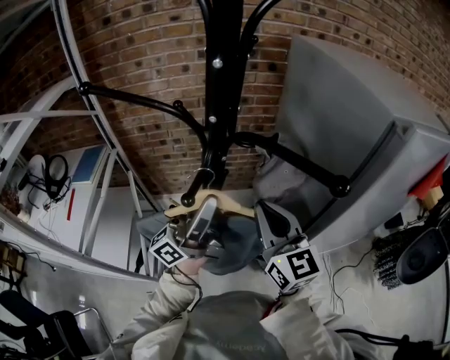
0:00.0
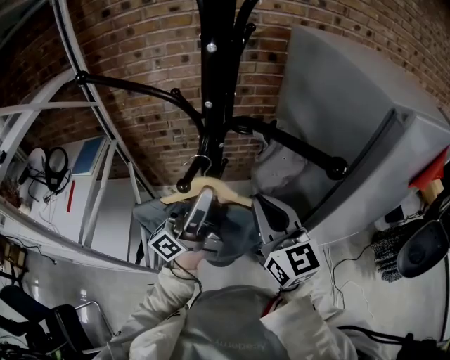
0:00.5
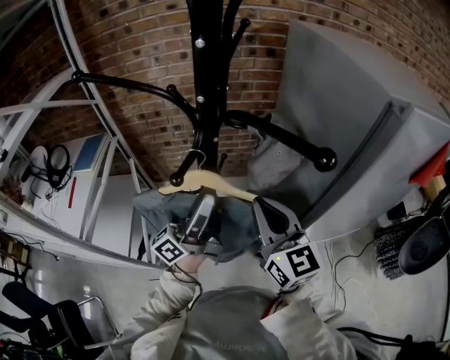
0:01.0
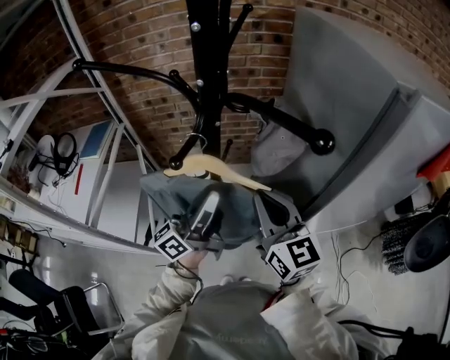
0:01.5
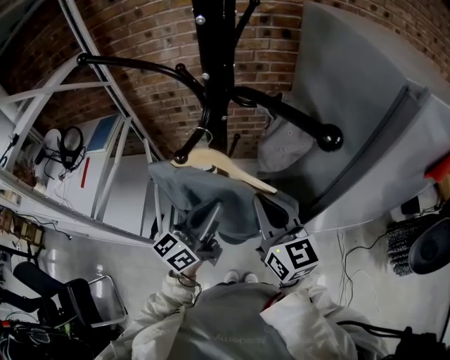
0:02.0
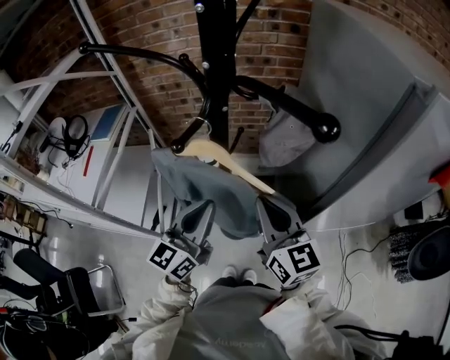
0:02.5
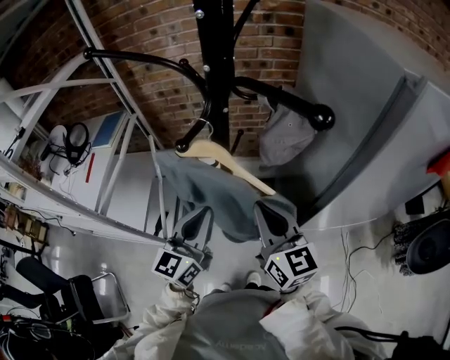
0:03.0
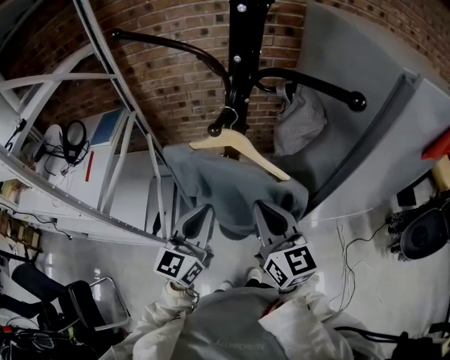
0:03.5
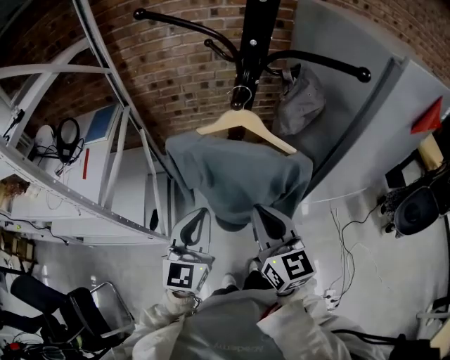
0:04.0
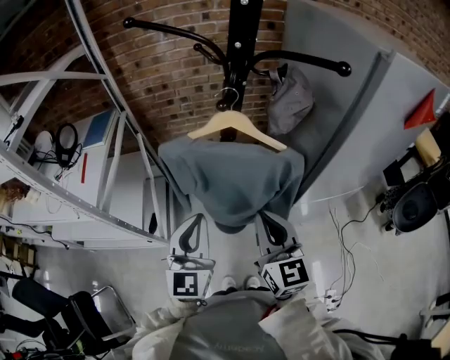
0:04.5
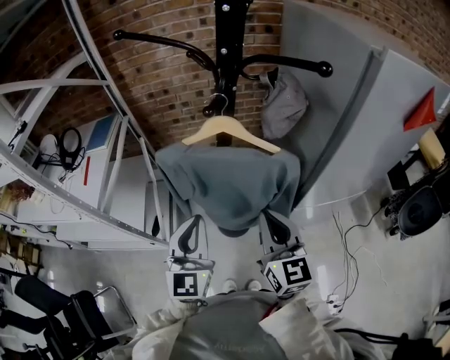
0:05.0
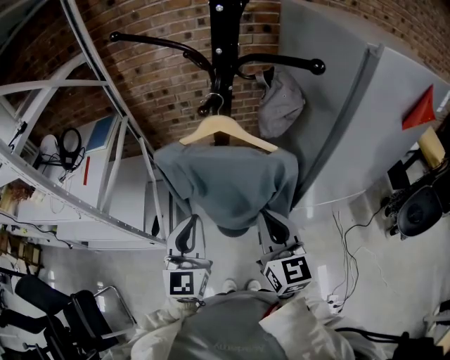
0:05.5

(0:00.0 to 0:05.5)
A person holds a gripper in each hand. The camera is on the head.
0:00.0 - 0:02.0: The right gripper is displaced downward by approximately 5 cm, while the left gripper moves downward and backward, approximately 10 cm, and tilts its fingers roughly 30 degrees downward.
0:02.0 - 0:03.5: The left gripper shifts some 10 cm to the left and backward, and rotates some 20 degrees, while the right gripper travels backward by some 5 cm.
0:03.5 - 0:05.5: Both grippers travel together backward, about 10 cm.

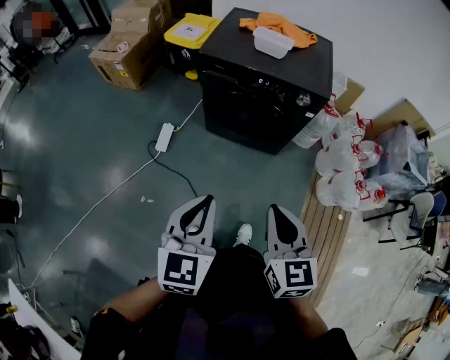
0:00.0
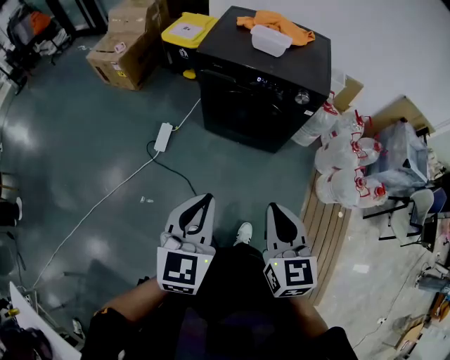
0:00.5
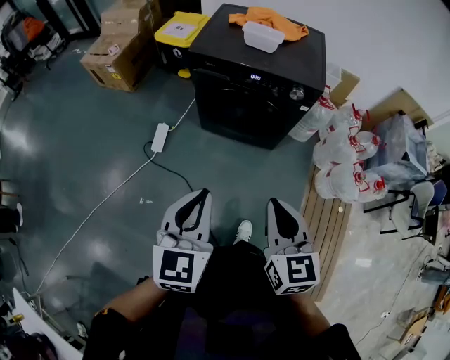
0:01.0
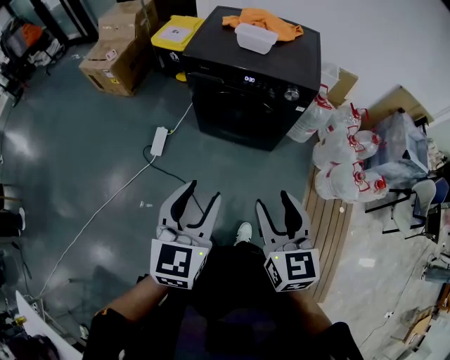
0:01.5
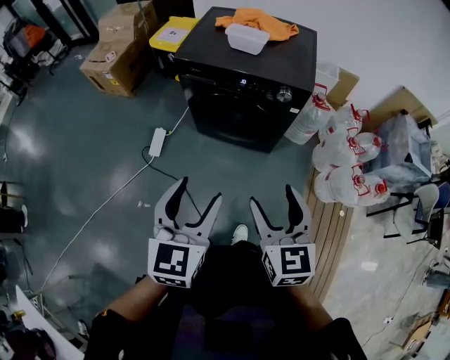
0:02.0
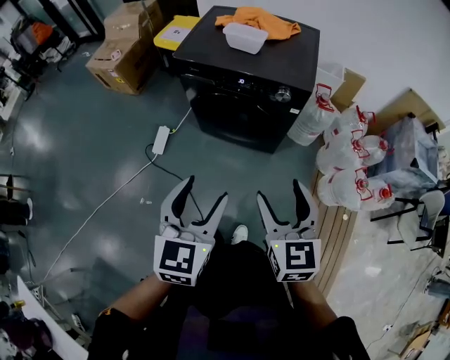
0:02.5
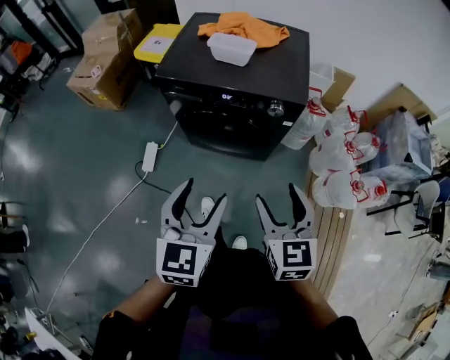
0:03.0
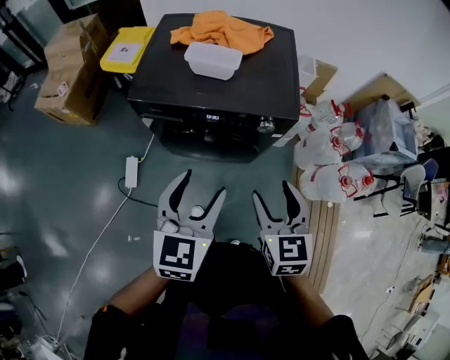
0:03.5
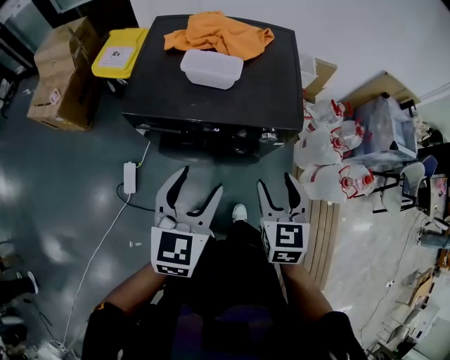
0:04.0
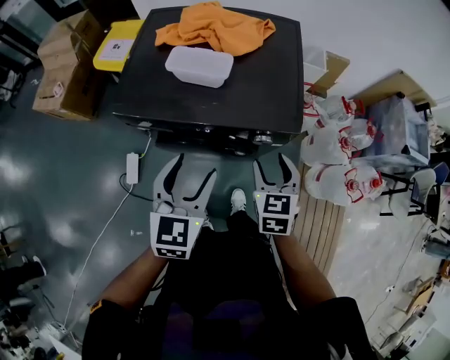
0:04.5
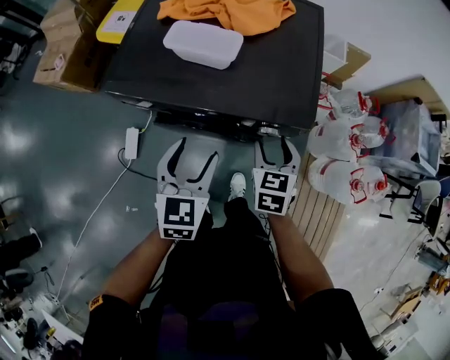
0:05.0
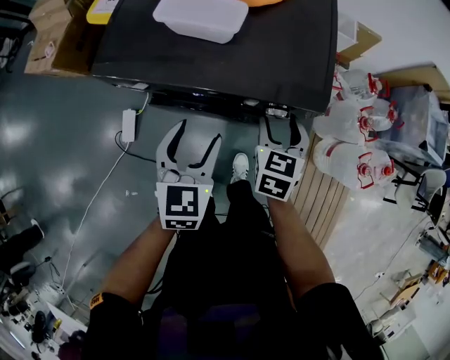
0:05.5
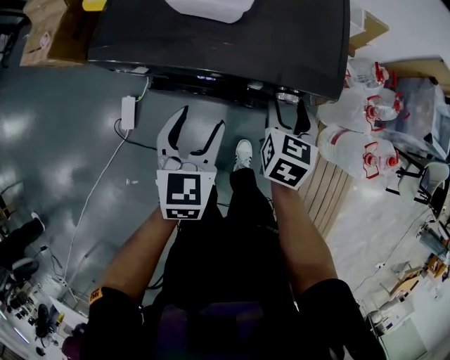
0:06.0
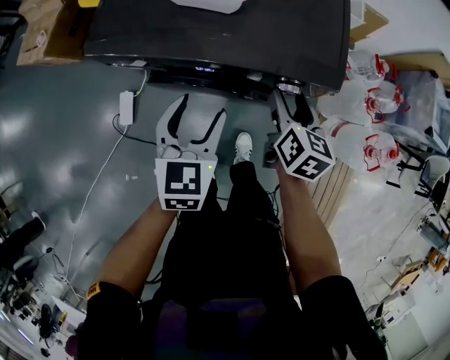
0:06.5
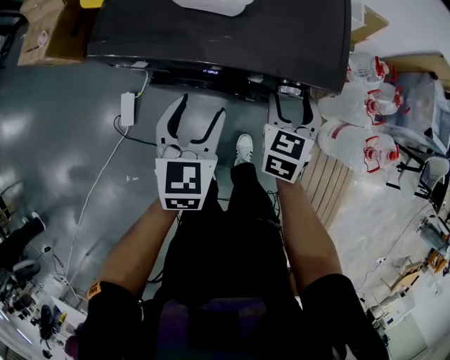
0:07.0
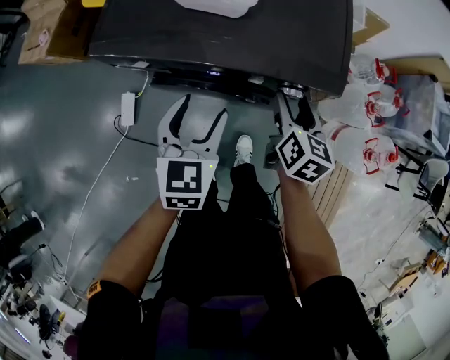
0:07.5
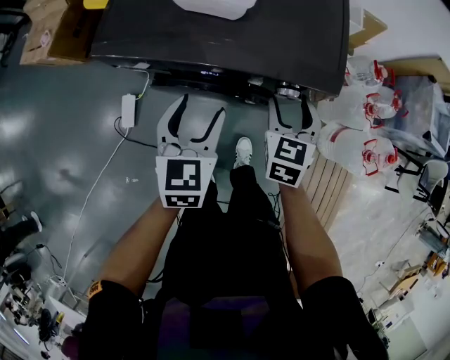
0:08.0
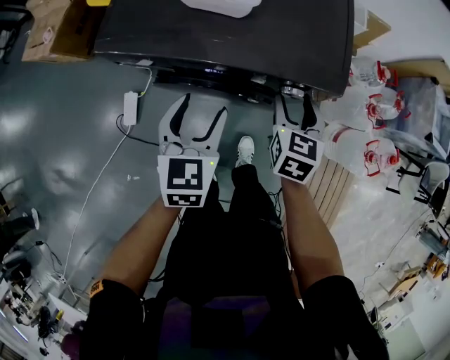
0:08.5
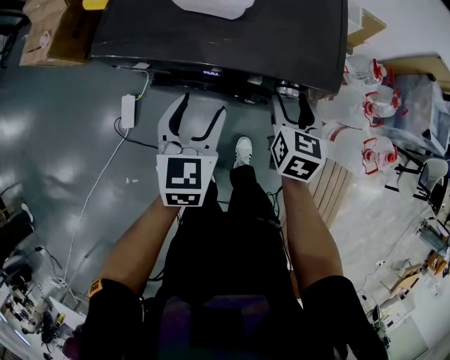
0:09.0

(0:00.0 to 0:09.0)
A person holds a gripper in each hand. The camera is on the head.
0:00.0 - 0:02.0: The left gripper heads to the right, covering some 10 cm, and opens its fingers. The right gripper moves to the right and forward, approximately 10 cm, and opens.
0:02.0 - 0:04.5: Both grippers move forward, approximately 35 cm. The right gripper swivels about 20 degrees.
0:04.5 - 0:07.0: The left gripper is displaced downward by approximately 10 cm. Meanwhile the right gripper moves downward and forward, some 10 cm.

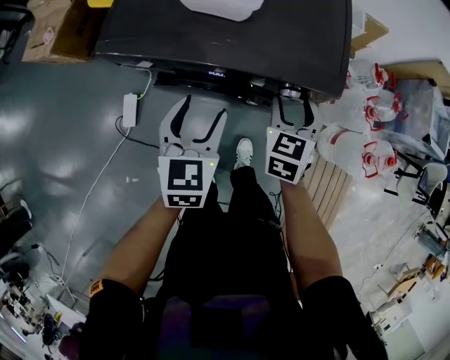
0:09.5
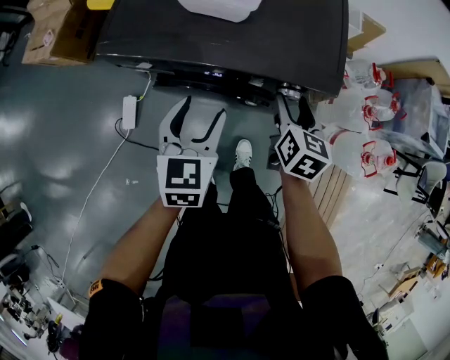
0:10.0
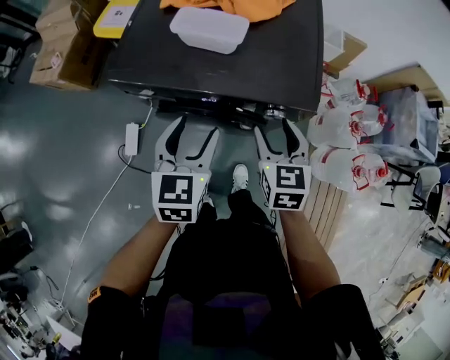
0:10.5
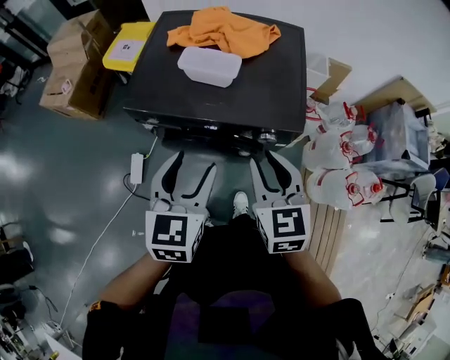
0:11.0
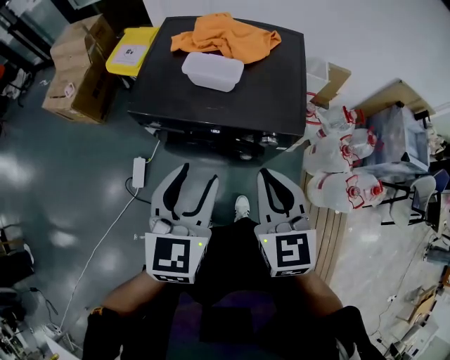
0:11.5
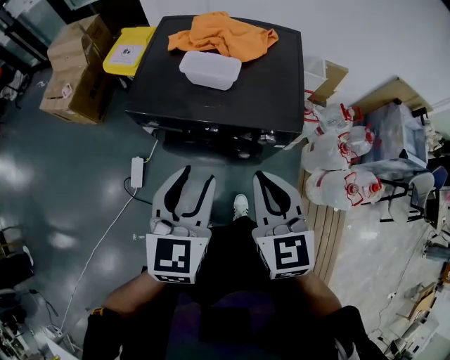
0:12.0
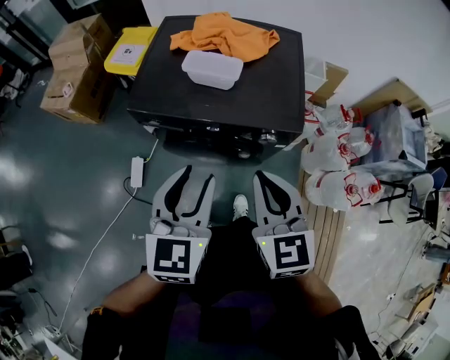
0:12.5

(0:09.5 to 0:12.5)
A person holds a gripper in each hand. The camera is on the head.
0:09.5 - 0:11.0: The right gripper shifts about 20 cm upward and backward, rotates some 20 degrees, and closes up. Meanwhile the left gripper goes roughly 15 cm upward.
0:11.0 - 0:12.5: The left gripper ends up approximately 5 cm from where it was, and closes. Meanwhile the right gripper heads backward, covering roughly 5 cm.

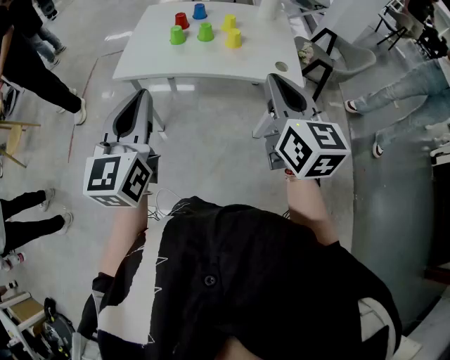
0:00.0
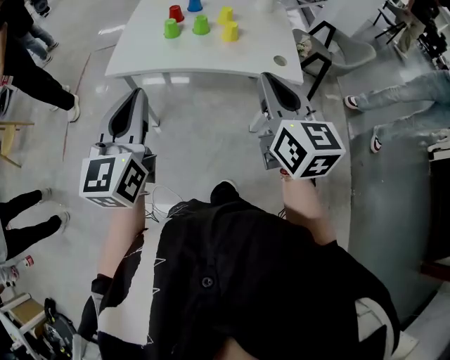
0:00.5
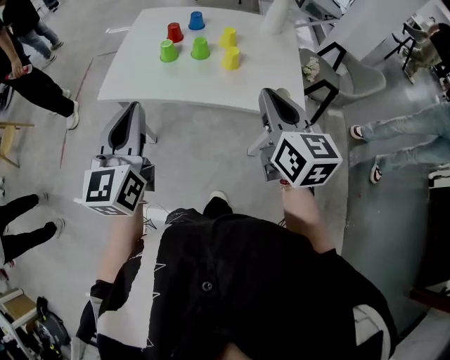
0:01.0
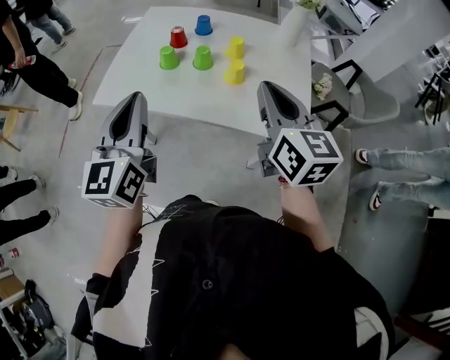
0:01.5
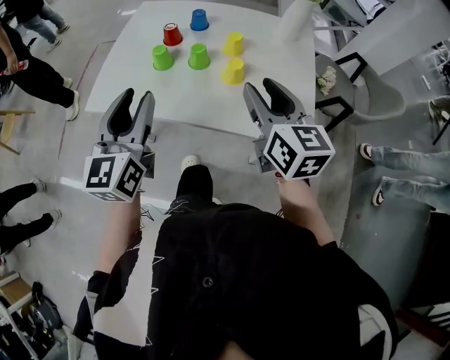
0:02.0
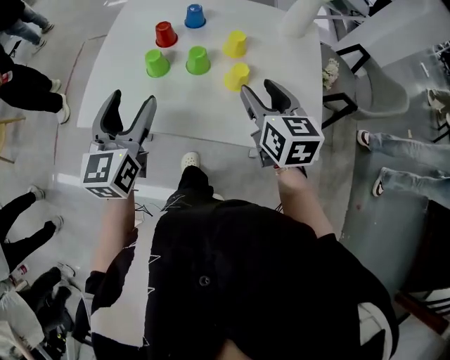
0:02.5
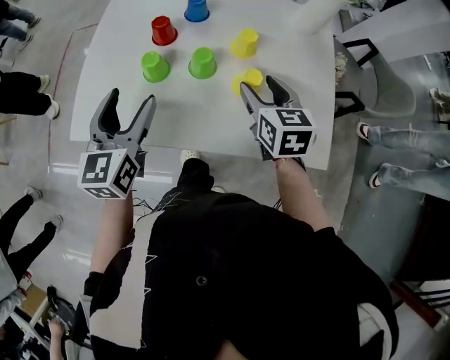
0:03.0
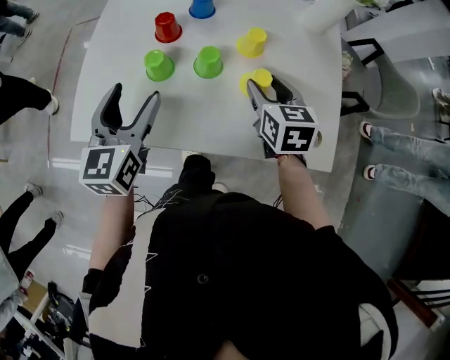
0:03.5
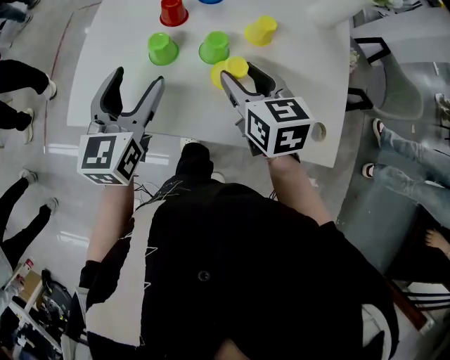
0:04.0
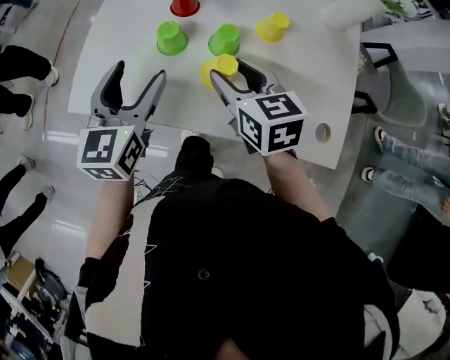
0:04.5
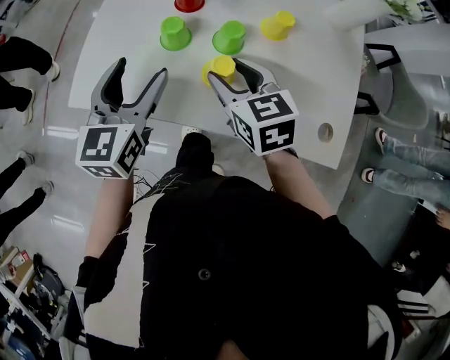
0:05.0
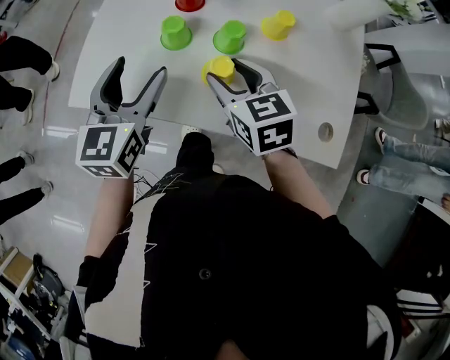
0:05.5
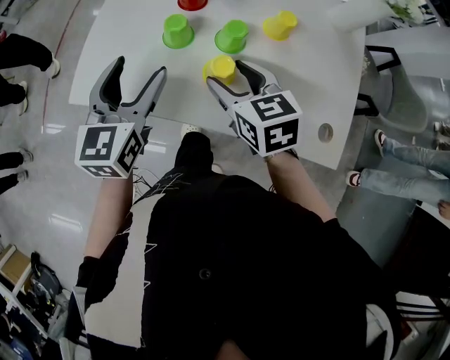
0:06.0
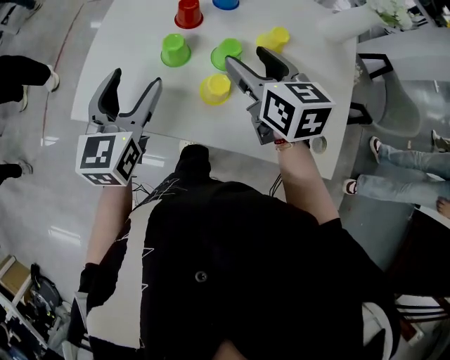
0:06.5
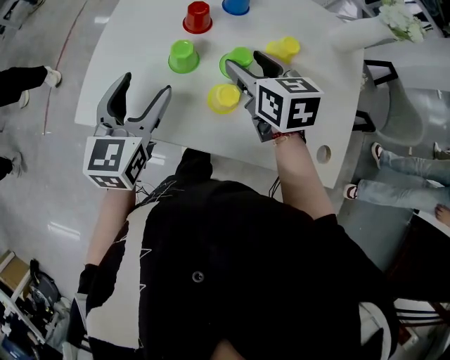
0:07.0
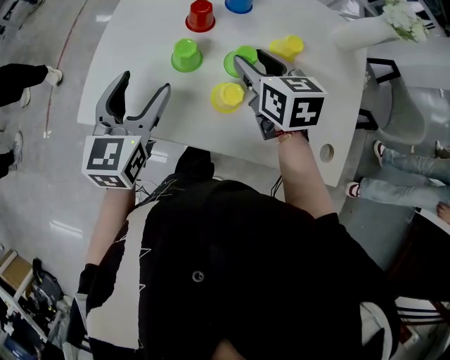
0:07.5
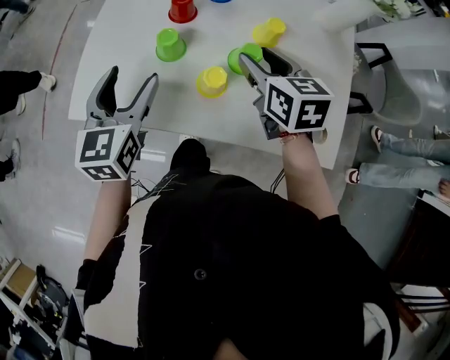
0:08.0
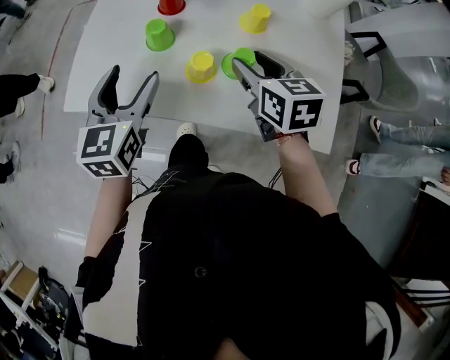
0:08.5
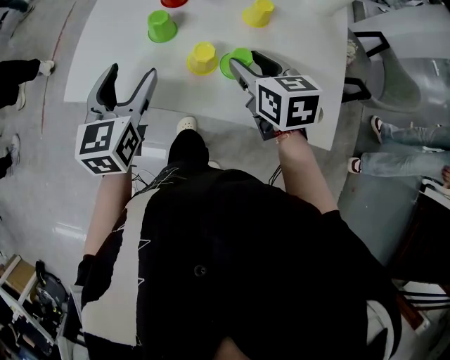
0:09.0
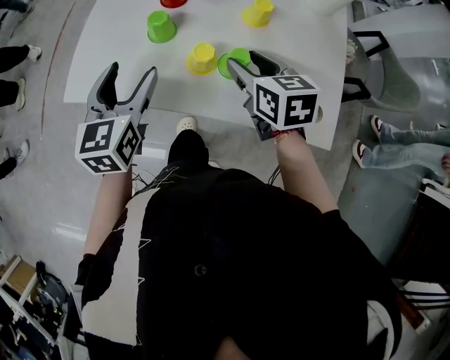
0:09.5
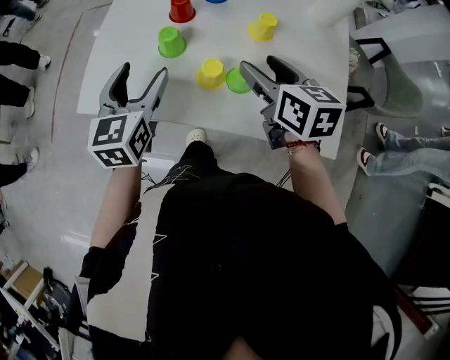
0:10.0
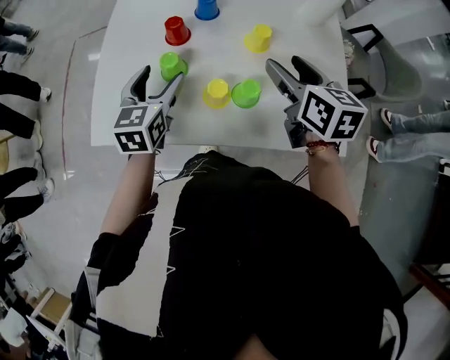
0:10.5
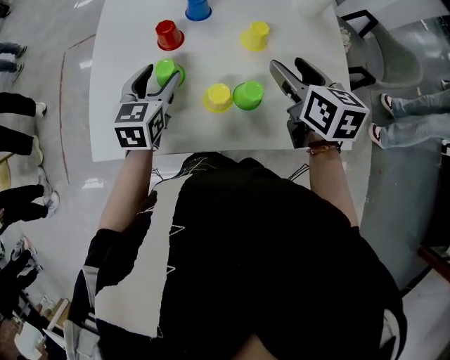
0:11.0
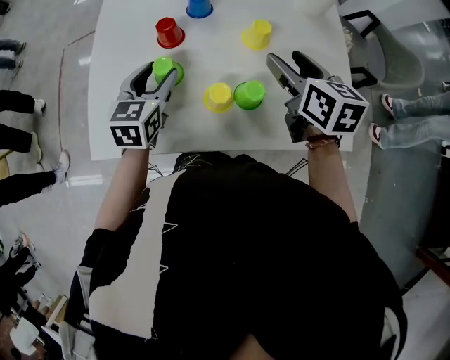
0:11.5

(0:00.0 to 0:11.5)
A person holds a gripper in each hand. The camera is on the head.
0:00.0 - 0:02.0: Both grippers travel together forward, some 25 cm. The left gripper opens its fingers; the right gripper opens.
0:02.0 - 0:04.0: The right gripper goes some 20 cm downward, forward and to the left, and turns by about 20 degrees, while the left gripper heads forward and downward, covering roughly 20 cm, and opens its fingers.
0:04.0 - 0:06.0: The right gripper is displaced to the left by approximately 5 cm.
0:06.0 - 0:07.5: The right gripper heads forward, covering some 10 cm.
0:07.5 - 0:09.5: The left gripper goes about 5 cm backward. Meanwhile the right gripper travels backward by roughly 10 cm.
0:09.5 - 0:11.5: The left gripper travels forward by about 15 cm, and rotates roughly 20 degrees, while the right gripper goes roughly 10 cm to the right, forward and upward, and turns by some 20 degrees.
